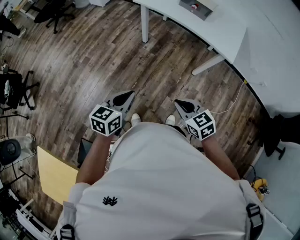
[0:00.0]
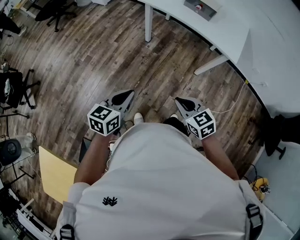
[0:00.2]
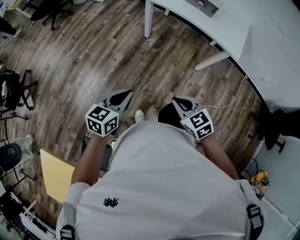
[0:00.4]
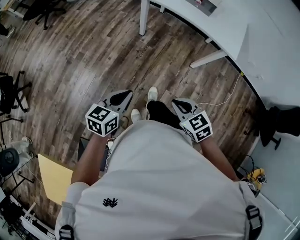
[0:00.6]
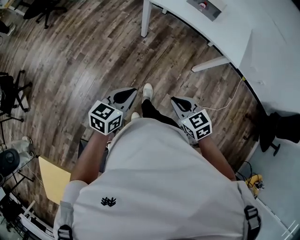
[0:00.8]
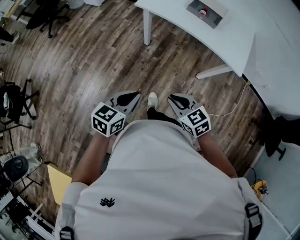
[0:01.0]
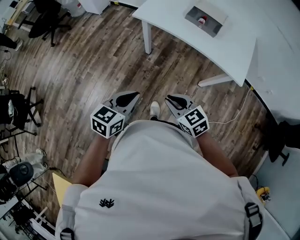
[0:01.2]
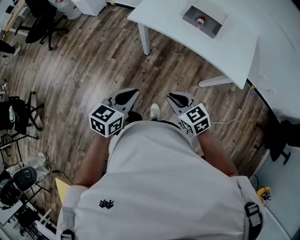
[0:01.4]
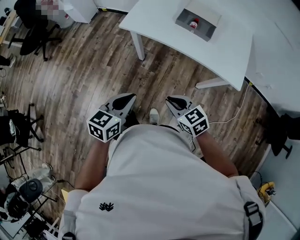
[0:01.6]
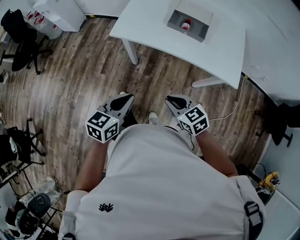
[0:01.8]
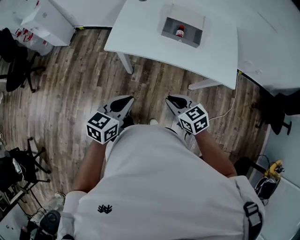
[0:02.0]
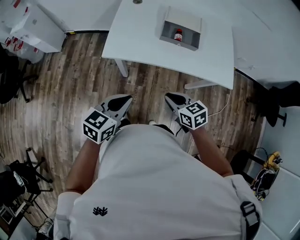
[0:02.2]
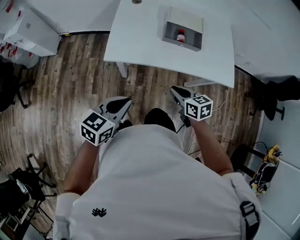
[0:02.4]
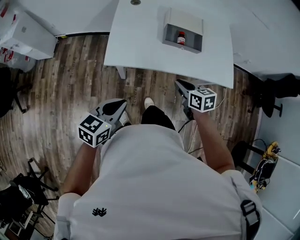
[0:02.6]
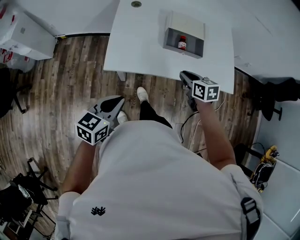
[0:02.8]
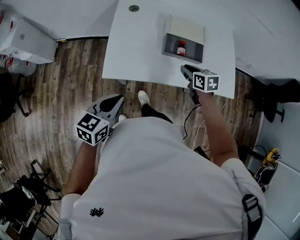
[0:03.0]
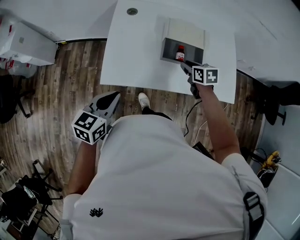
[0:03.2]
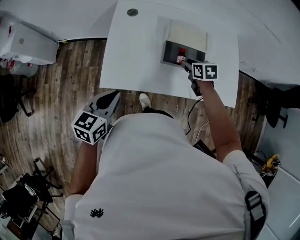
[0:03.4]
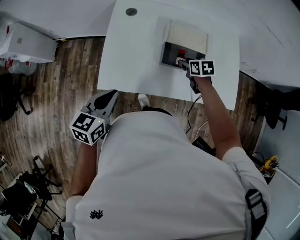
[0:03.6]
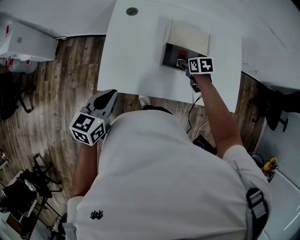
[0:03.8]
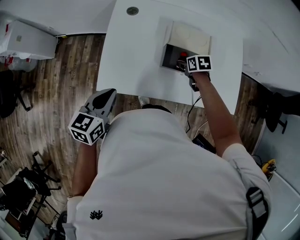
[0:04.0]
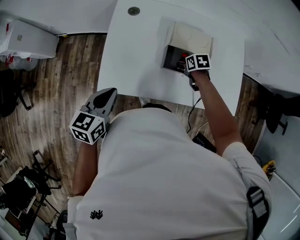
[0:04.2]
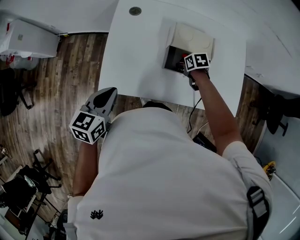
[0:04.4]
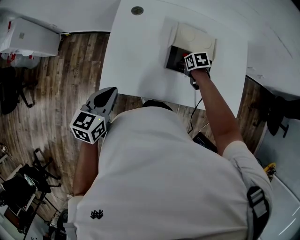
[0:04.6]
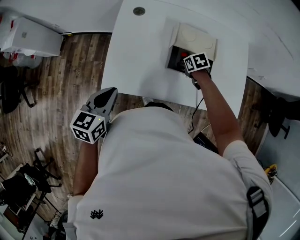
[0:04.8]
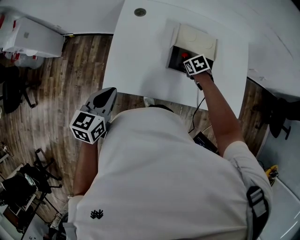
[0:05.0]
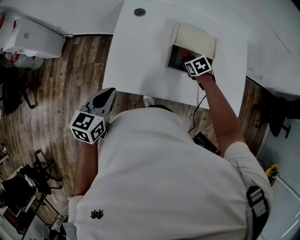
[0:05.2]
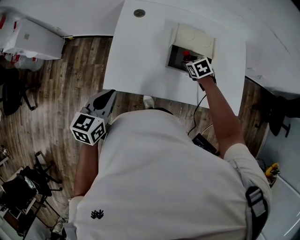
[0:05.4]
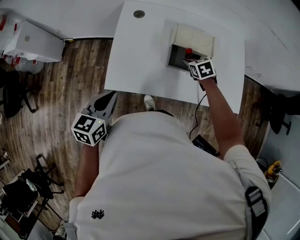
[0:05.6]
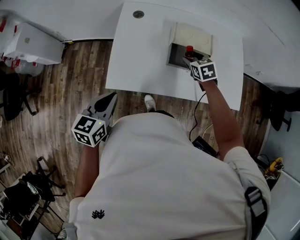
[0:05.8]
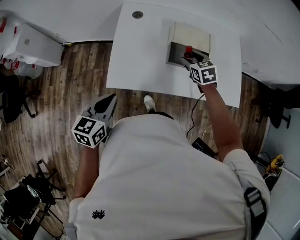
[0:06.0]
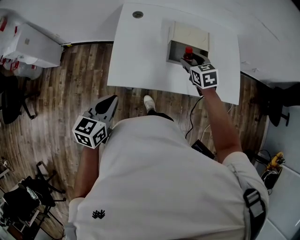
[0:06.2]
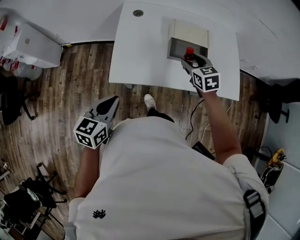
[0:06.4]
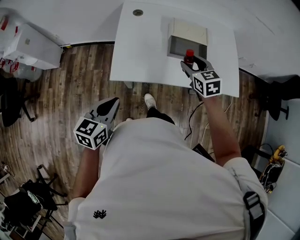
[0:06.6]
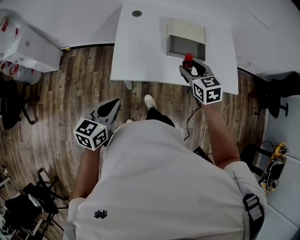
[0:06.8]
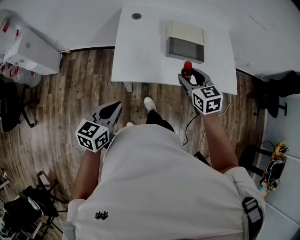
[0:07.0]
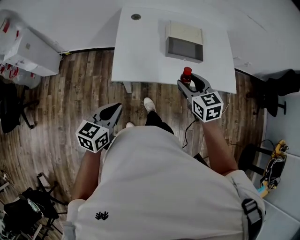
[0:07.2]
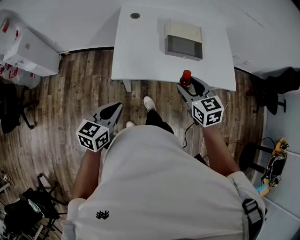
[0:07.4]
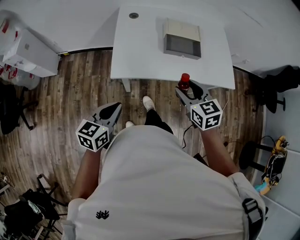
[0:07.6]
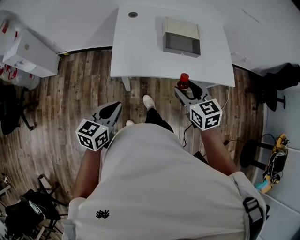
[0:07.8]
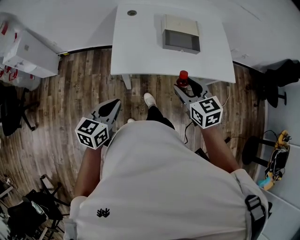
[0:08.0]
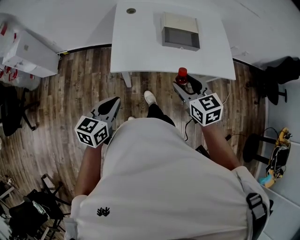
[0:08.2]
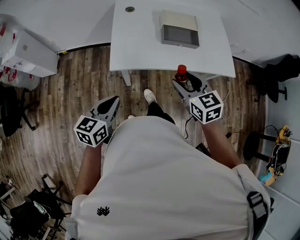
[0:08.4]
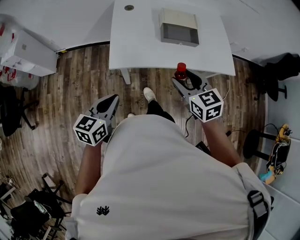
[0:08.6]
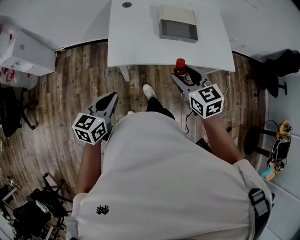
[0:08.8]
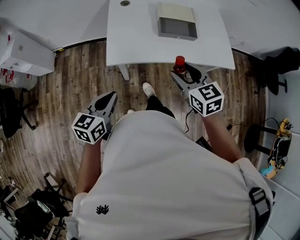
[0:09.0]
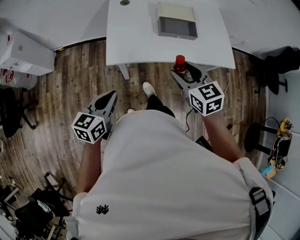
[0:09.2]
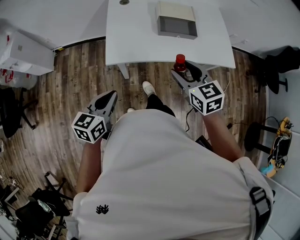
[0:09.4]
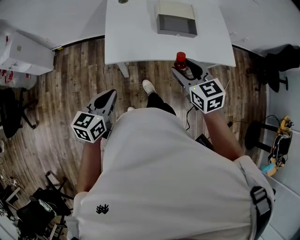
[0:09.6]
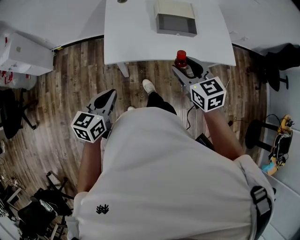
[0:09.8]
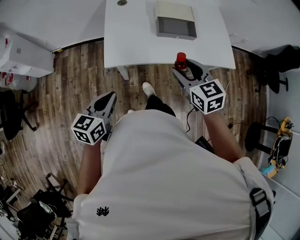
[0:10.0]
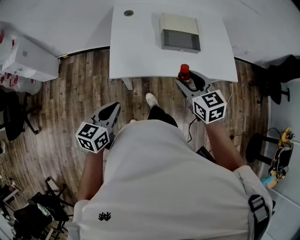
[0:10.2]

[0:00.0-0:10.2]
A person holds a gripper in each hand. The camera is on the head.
0:00.0 to 0:01.4: Both grippers travel together forward, about 25 cm.
0:01.4 to 0:03.0: The left gripper shifts by roughly 30 cm, and turns by some 20 degrees; the right gripper shifts by roughly 35 cm, and rotates about 50 degrees.
0:03.0 to 0:04.4: The right gripper shifts about 15 cm downward and forward, swivels approximately 30 degrees, and opens; the left gripper goes roughly 10 cm forward.
0:04.4 to 0:05.8: The left gripper moves about 5 cm, while the right gripper moves upward, approximately 10 cm, and rotates roughly 30 degrees.
0:05.8 to 0:07.2: The left gripper travels backward by some 10 cm, while the right gripper moves backward and upward, about 25 cm.
0:07.2 to 0:08.8: The right gripper shifts about 5 cm backward.
0:08.8 to 0:10.2: The grippers move only a little.

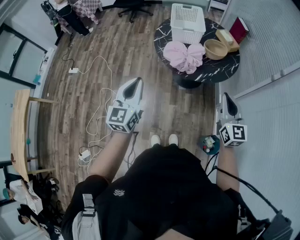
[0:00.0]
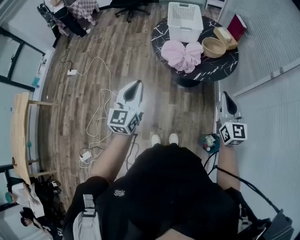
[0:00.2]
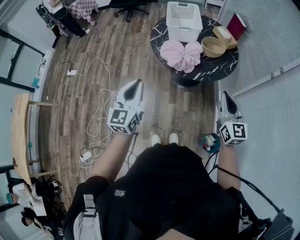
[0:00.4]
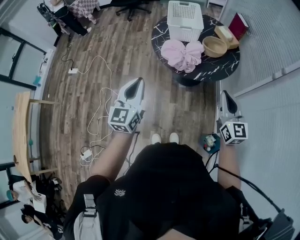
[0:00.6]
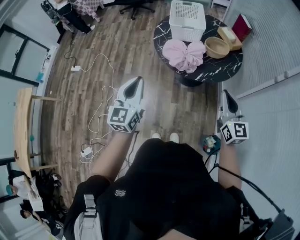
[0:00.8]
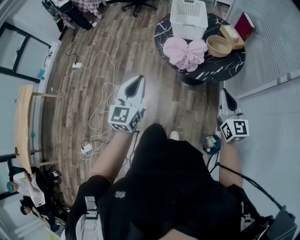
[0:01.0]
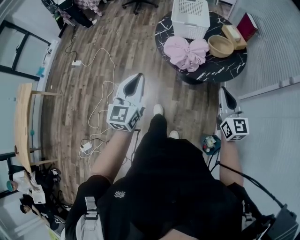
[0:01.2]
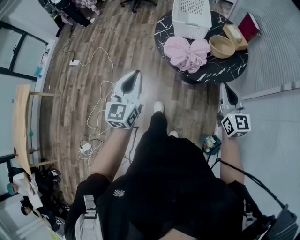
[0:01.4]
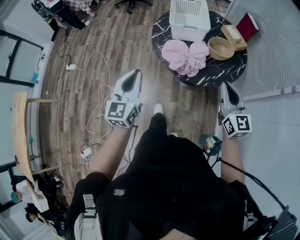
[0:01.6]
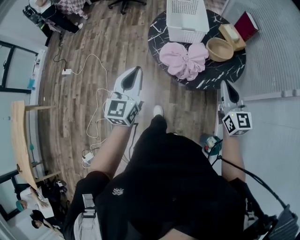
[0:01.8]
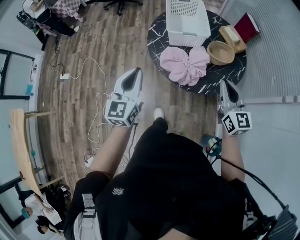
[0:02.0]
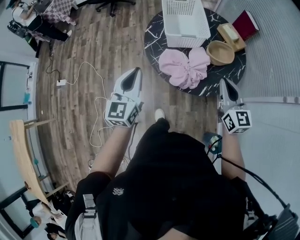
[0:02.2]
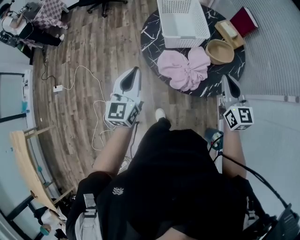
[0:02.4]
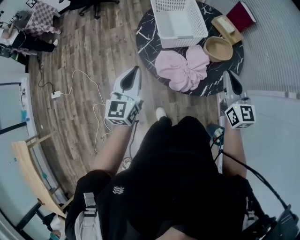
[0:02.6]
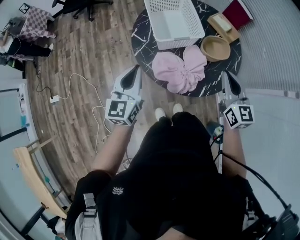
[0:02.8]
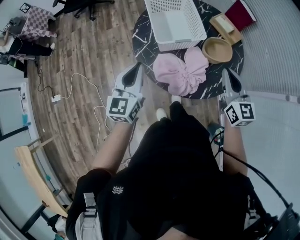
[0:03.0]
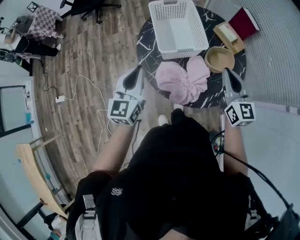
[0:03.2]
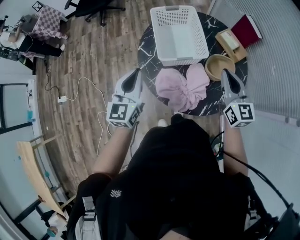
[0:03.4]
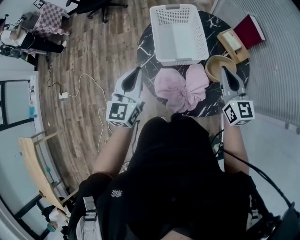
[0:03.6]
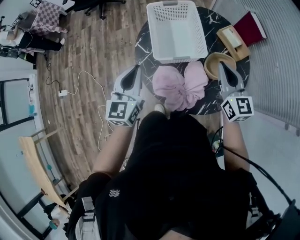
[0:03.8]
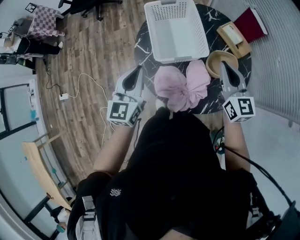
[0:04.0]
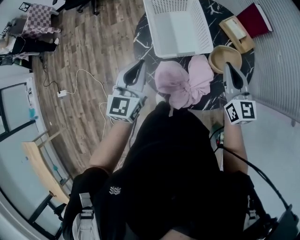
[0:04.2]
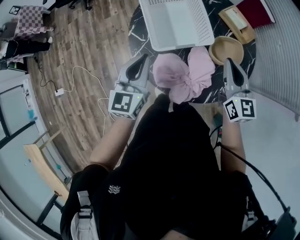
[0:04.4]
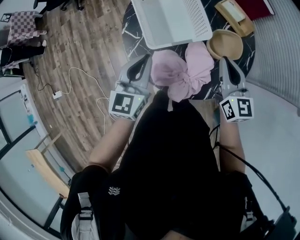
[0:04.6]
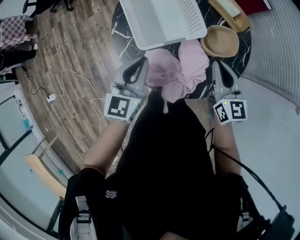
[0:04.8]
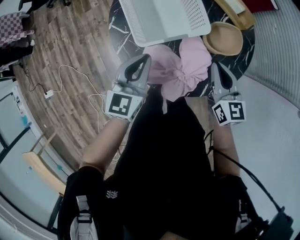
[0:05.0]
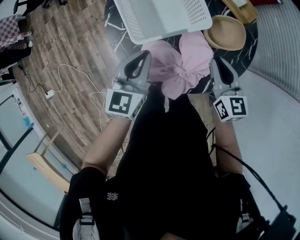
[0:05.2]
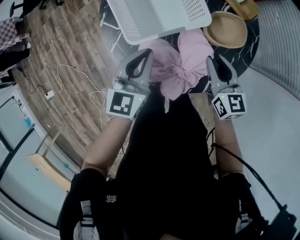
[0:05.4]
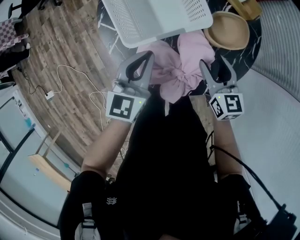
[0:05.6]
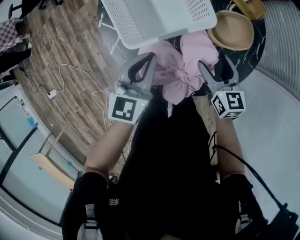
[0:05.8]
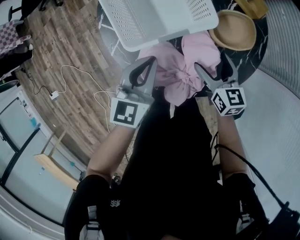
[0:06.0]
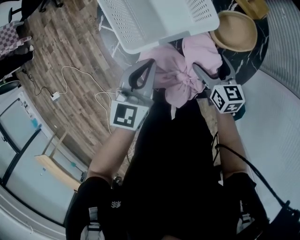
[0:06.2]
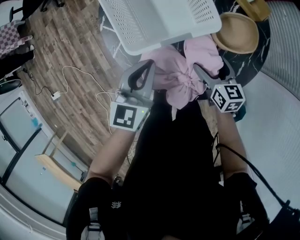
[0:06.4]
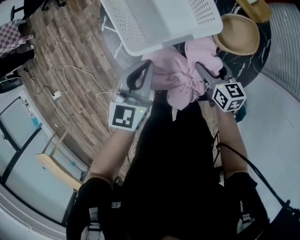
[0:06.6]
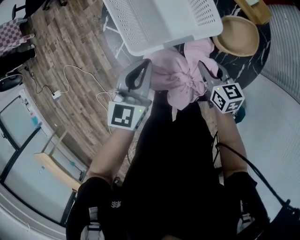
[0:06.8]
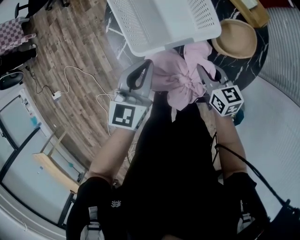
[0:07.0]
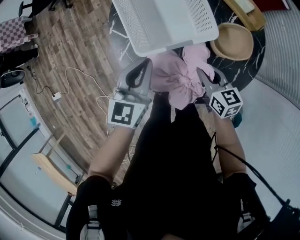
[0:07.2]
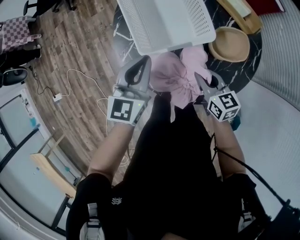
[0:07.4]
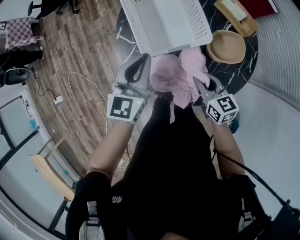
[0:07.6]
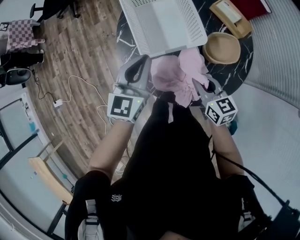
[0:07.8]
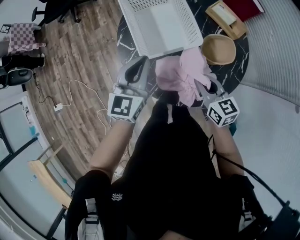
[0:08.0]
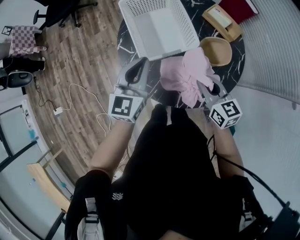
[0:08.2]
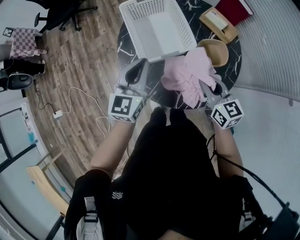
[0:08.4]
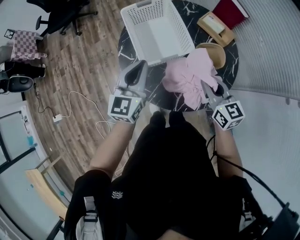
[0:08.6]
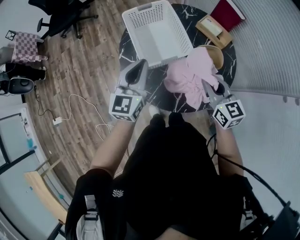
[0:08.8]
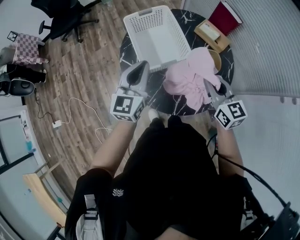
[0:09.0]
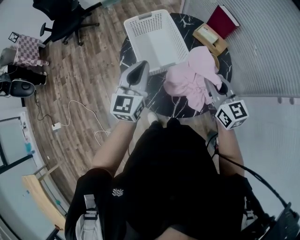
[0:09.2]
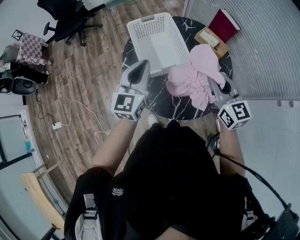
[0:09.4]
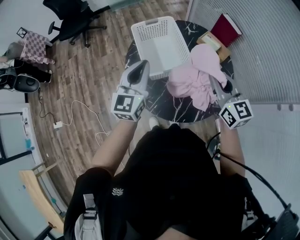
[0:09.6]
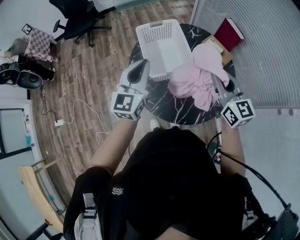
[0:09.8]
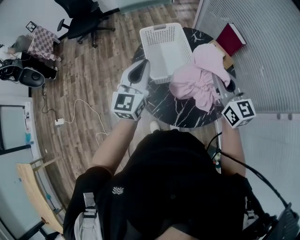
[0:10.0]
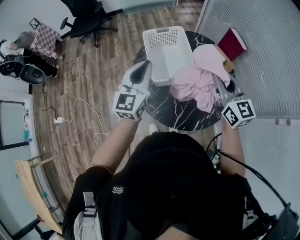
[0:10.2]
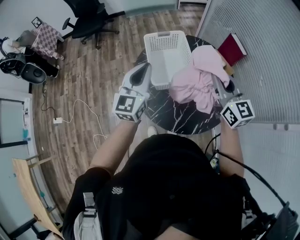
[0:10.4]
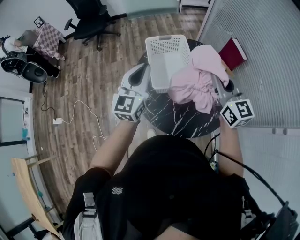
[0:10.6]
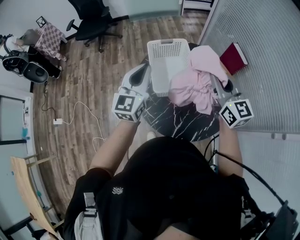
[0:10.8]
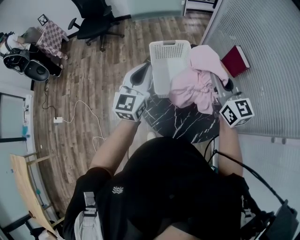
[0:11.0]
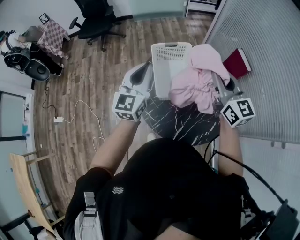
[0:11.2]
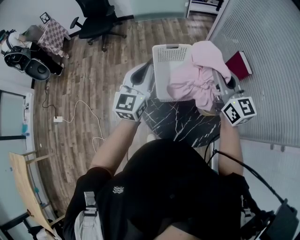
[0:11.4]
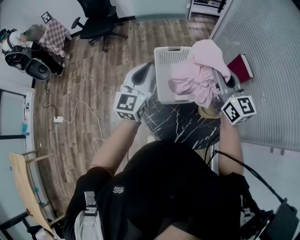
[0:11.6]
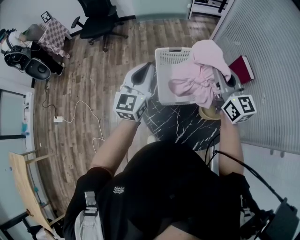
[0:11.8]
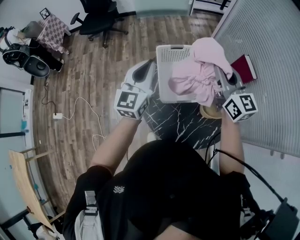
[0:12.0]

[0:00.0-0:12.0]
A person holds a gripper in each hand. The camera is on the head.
0:00.0 to 0:01.6: Both grippers travel together forward, roughly 15 cm.
0:01.6 to 0:03.0: The grippers both shift forward by some 25 cm.
0:03.0 to 0:04.4: The right gripper heads forward and downward, covering roughly 15 cm. Meanwhile the left gripper shifts approximately 10 cm forward.
0:04.4 to 0:06.0: The right gripper heads downward, covering about 25 cm, rotates some 20 degrees, and opens; the left gripper travels downward and to the right by approximately 15 cm.
0:06.0 to 0:07.6: The right gripper travels upward and to the left by some 10 cm, and closes its fingers. The left gripper shifts roughly 10 cm upward.
0:07.6 to 0:09.0: The right gripper goes approximately 20 cm upward, and changes its angle by about 20 degrees; the left gripper moves upward, roughly 10 cm.
0:09.0 to 0:10.4: The left gripper moves upward, some 10 cm. Meanwhile the right gripper travels upward and forward by roughly 15 cm.
0:10.4 to 0:12.0: The grippers both shift forward by roughly 10 cm.

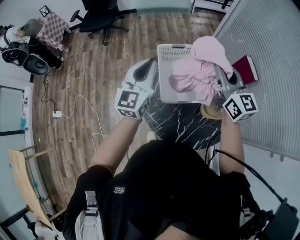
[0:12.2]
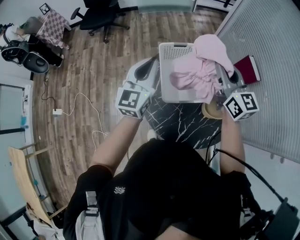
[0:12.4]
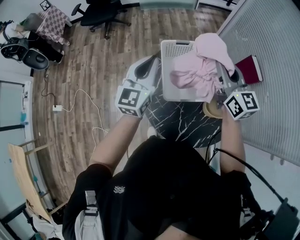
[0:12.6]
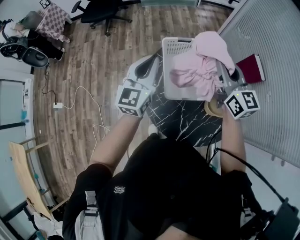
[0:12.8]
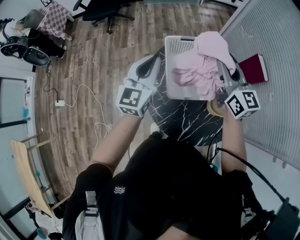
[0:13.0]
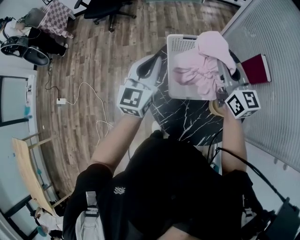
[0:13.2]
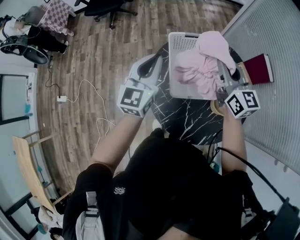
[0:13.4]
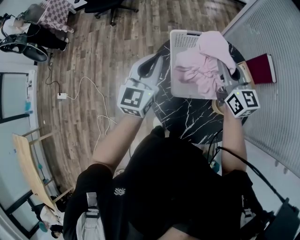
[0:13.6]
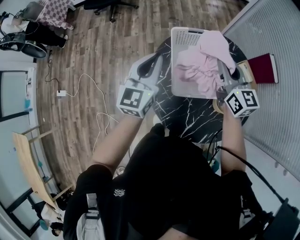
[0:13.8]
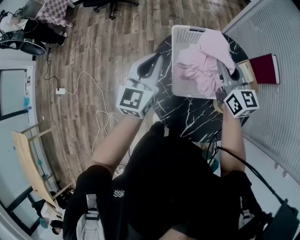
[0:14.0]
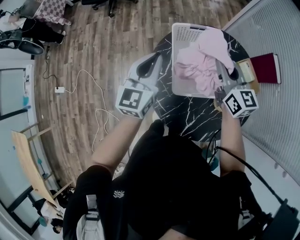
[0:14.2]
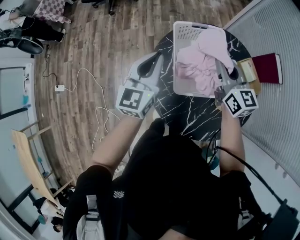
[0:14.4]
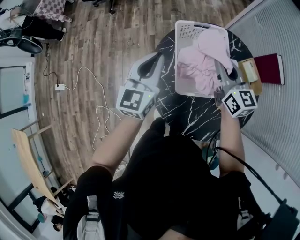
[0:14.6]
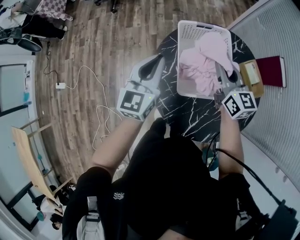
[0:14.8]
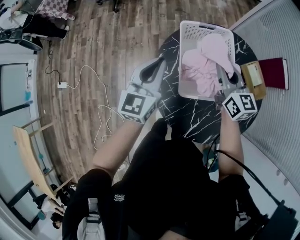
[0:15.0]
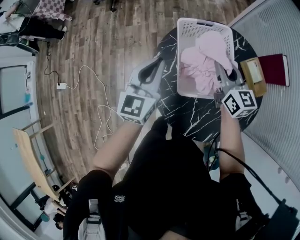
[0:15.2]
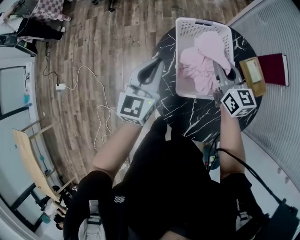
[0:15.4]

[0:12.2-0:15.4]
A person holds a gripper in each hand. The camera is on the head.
0:12.2 to 0:13.8: The right gripper travels downward and forward by roughly 10 cm, while the left gripper travels downward by some 5 cm.
0:13.8 to 0:15.4: The left gripper is displaced downward by approximately 5 cm. The right gripper travels downward by roughly 10 cm.
